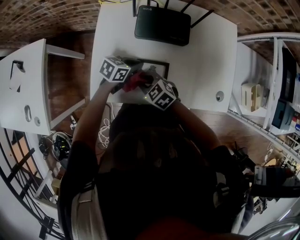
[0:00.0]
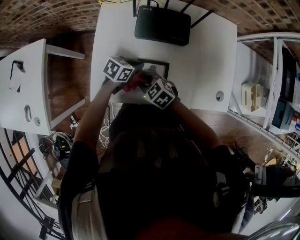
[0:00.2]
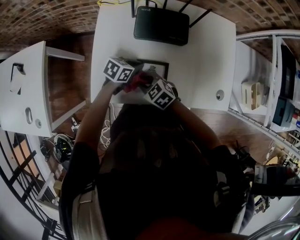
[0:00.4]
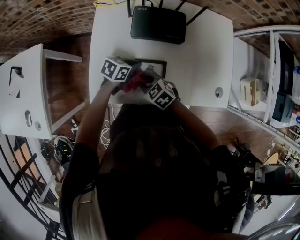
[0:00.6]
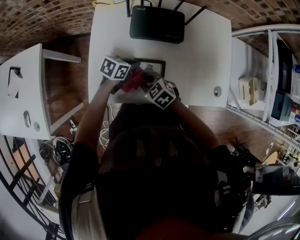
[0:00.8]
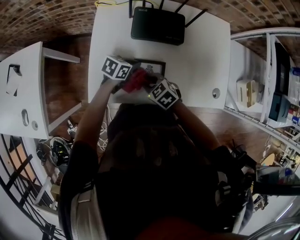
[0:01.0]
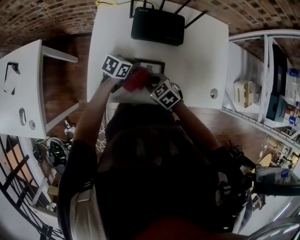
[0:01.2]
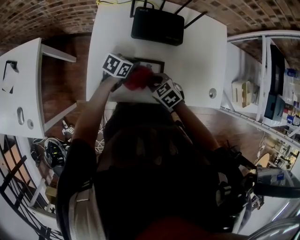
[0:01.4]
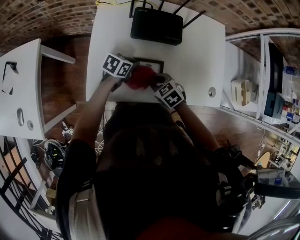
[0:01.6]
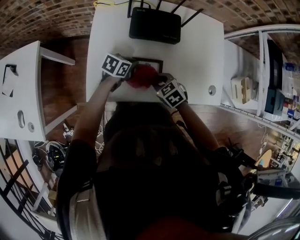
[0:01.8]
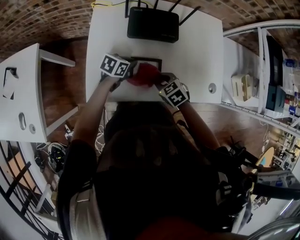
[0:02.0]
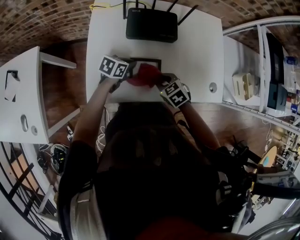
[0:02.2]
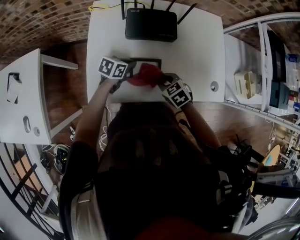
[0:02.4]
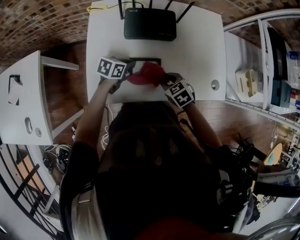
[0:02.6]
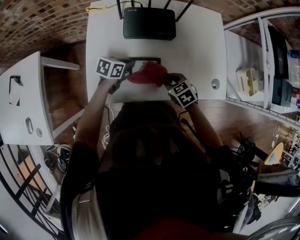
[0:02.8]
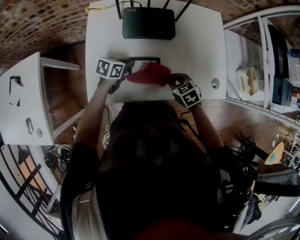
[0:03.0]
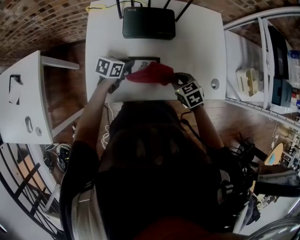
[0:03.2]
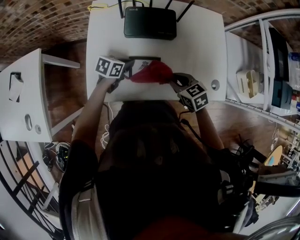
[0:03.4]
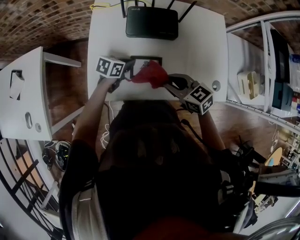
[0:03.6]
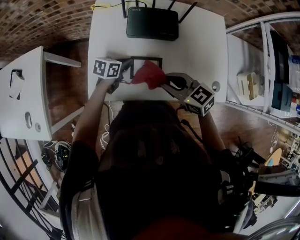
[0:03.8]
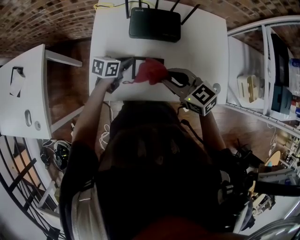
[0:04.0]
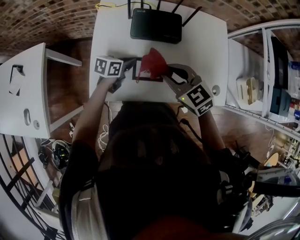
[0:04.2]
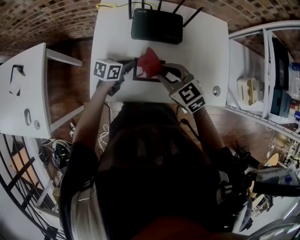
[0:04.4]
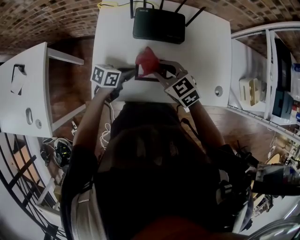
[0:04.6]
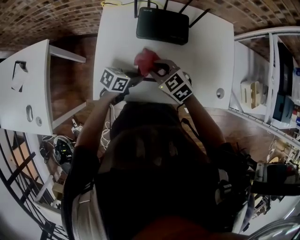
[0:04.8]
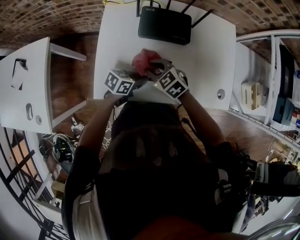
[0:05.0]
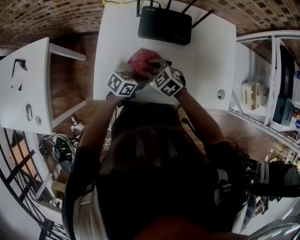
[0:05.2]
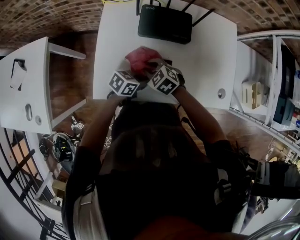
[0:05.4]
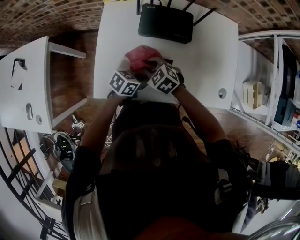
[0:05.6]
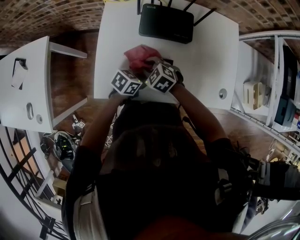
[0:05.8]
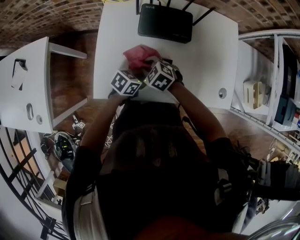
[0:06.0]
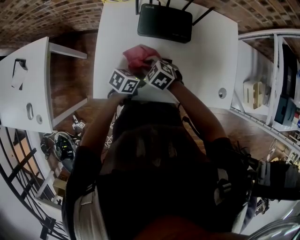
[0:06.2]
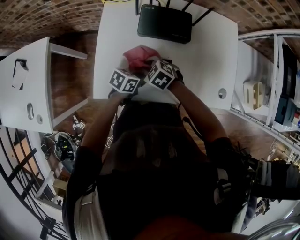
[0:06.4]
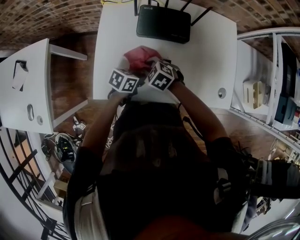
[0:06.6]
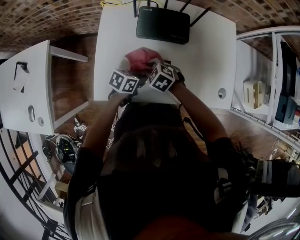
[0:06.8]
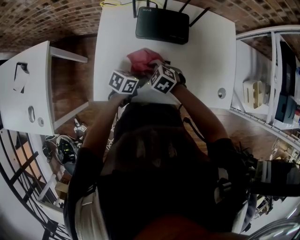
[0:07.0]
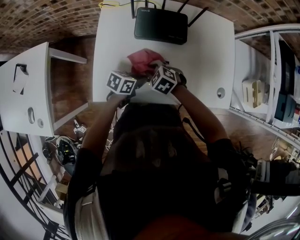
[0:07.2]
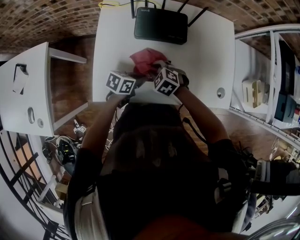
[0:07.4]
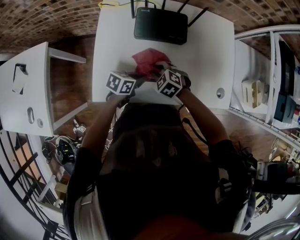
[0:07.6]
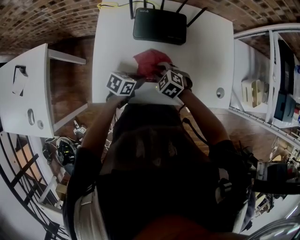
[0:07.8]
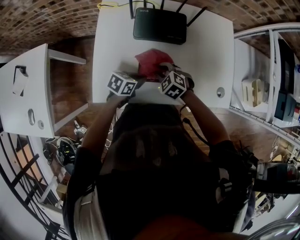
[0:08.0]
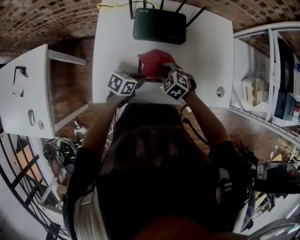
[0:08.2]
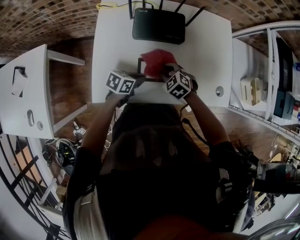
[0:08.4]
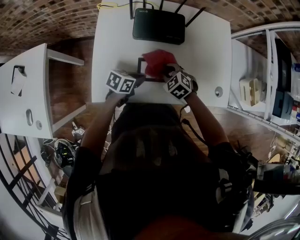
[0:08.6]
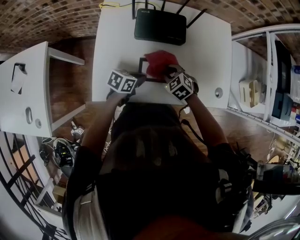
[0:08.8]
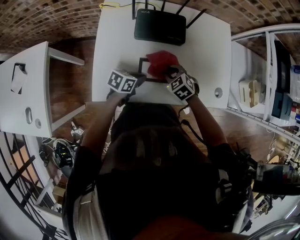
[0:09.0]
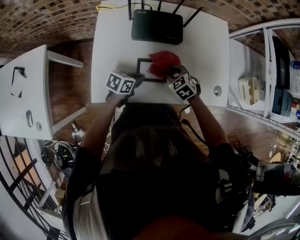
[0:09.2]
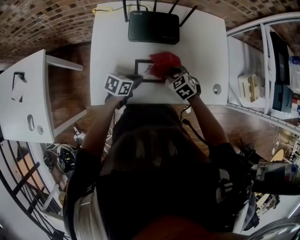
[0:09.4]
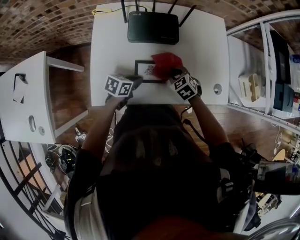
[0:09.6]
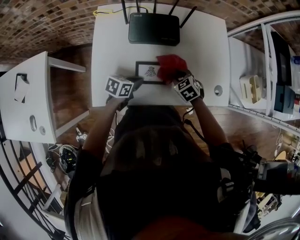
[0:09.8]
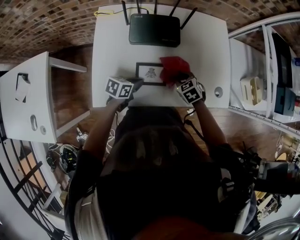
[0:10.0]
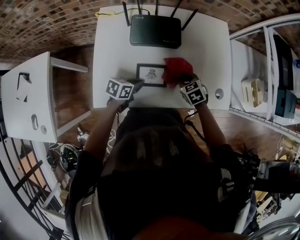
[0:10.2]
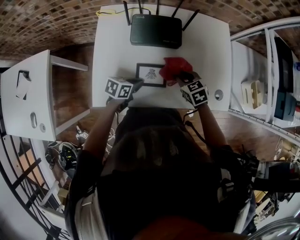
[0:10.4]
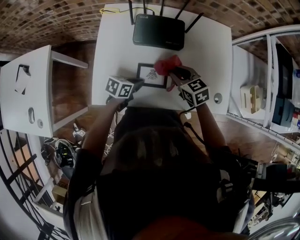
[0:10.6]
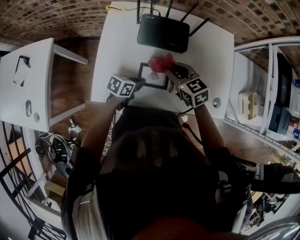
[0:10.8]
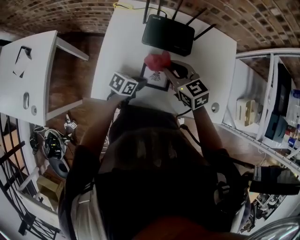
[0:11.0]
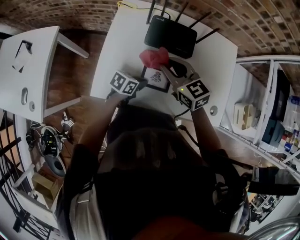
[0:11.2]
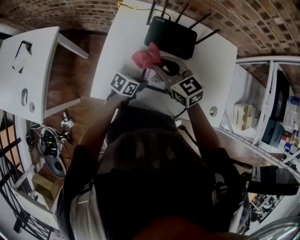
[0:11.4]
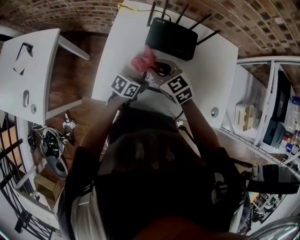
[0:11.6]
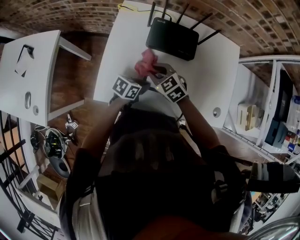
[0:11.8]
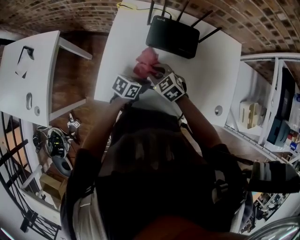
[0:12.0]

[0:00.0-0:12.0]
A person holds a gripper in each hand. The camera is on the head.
0:00.0 to 0:01.6: The right gripper moves some 10 cm.
0:01.6 to 0:03.0: The right gripper travels to the right by roughly 10 cm.
0:03.0 to 0:04.4: The right gripper moves upward, about 15 cm, and changes its angle by some 30 degrees.
0:04.4 to 0:06.0: The right gripper is displaced downward by some 15 cm, and changes its angle by some 30 degrees, while the left gripper moves about 10 cm.
0:06.0 to 0:07.6: The right gripper ends up approximately 5 cm from where it was.
0:07.6 to 0:09.0: The right gripper shifts about 5 cm to the right.
0:09.0 to 0:10.4: The right gripper moves to the right, about 5 cm, and rotates approximately 20 degrees.
0:10.4 to 0:12.0: The right gripper moves some 15 cm upward and comes back, and turns by roughly 30 degrees.

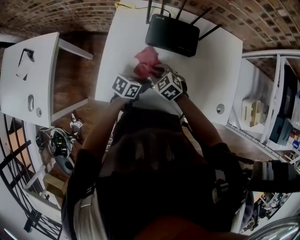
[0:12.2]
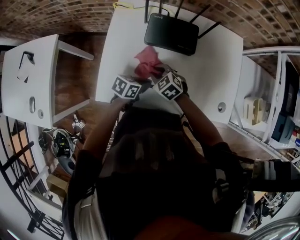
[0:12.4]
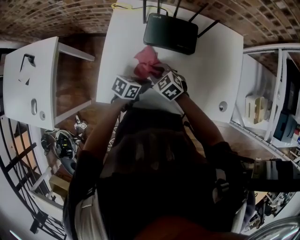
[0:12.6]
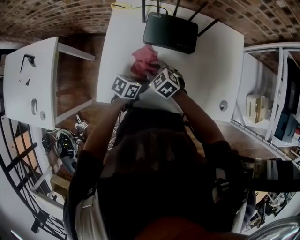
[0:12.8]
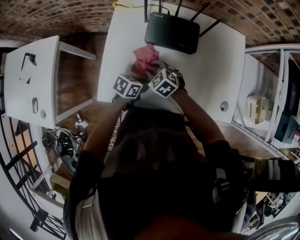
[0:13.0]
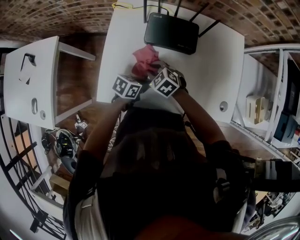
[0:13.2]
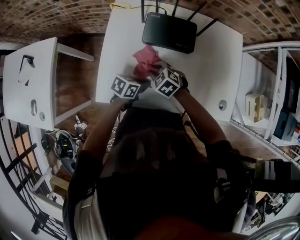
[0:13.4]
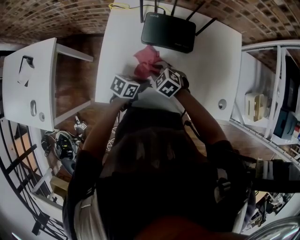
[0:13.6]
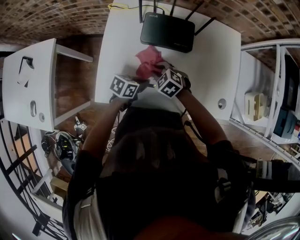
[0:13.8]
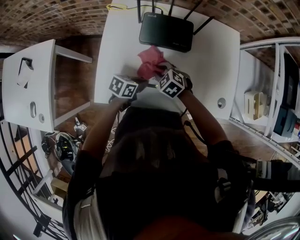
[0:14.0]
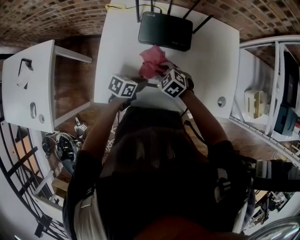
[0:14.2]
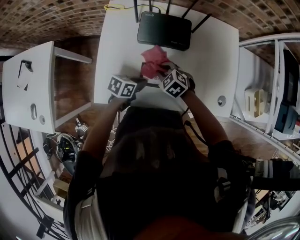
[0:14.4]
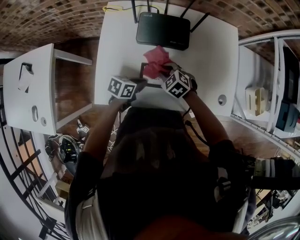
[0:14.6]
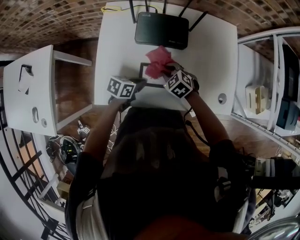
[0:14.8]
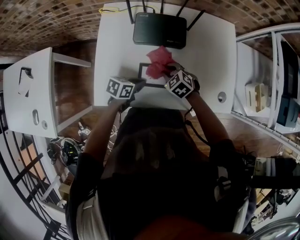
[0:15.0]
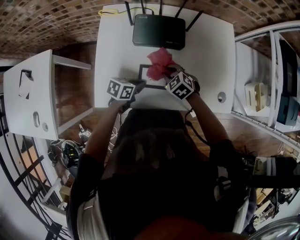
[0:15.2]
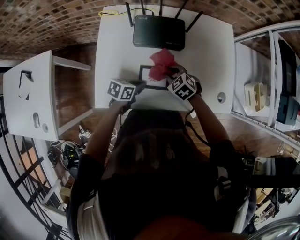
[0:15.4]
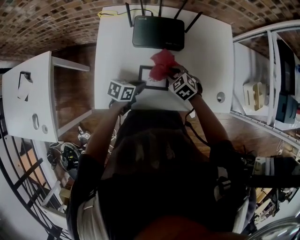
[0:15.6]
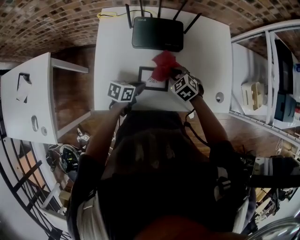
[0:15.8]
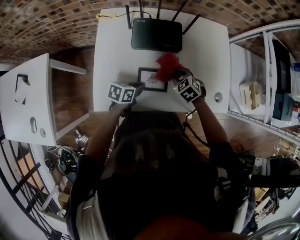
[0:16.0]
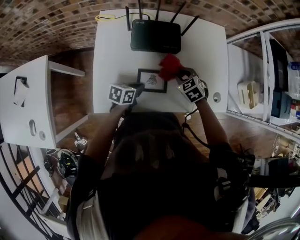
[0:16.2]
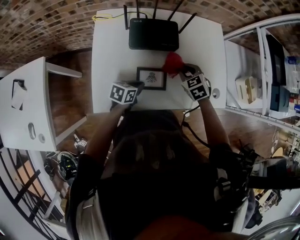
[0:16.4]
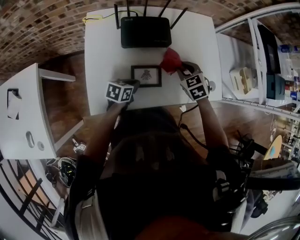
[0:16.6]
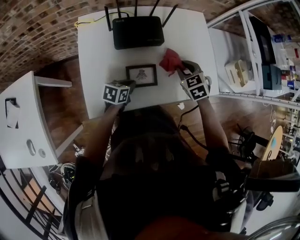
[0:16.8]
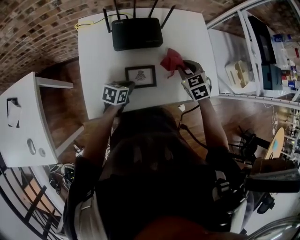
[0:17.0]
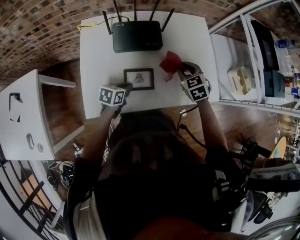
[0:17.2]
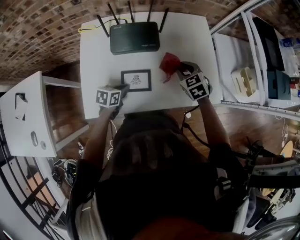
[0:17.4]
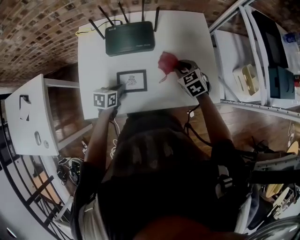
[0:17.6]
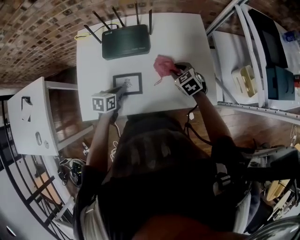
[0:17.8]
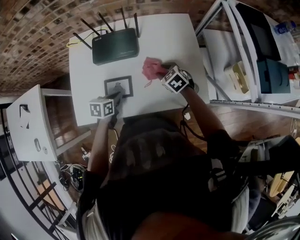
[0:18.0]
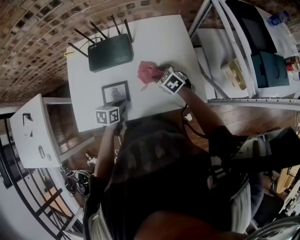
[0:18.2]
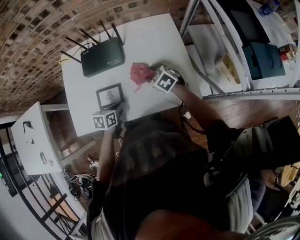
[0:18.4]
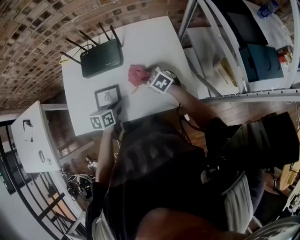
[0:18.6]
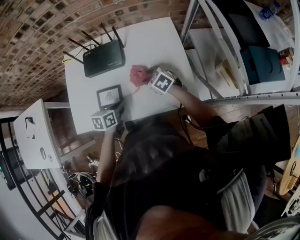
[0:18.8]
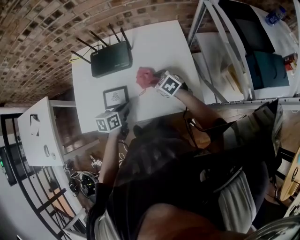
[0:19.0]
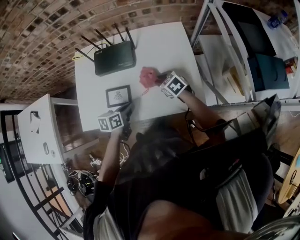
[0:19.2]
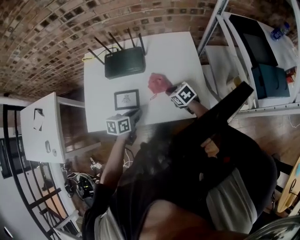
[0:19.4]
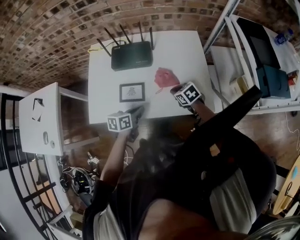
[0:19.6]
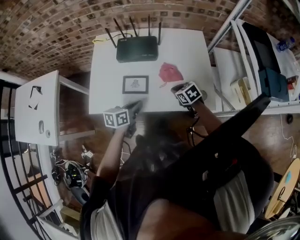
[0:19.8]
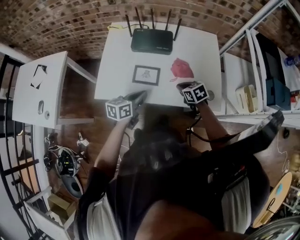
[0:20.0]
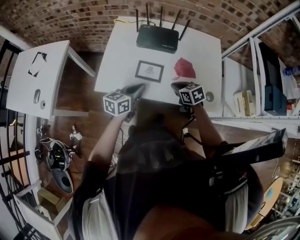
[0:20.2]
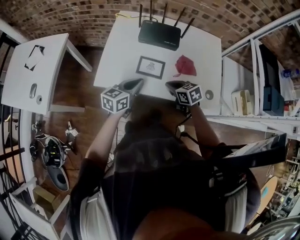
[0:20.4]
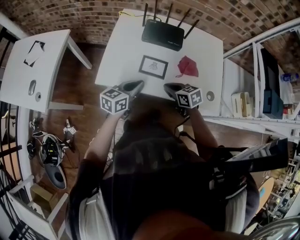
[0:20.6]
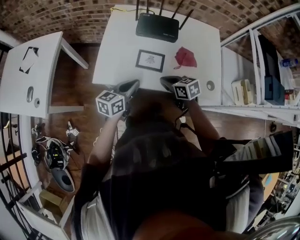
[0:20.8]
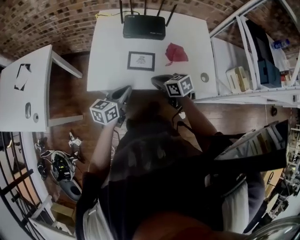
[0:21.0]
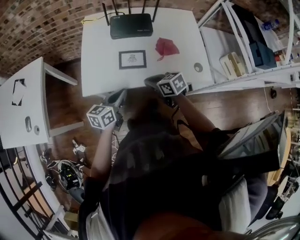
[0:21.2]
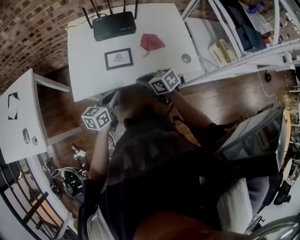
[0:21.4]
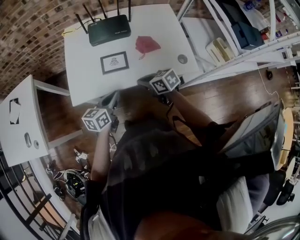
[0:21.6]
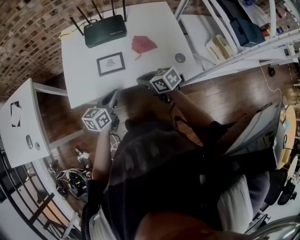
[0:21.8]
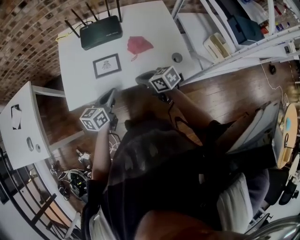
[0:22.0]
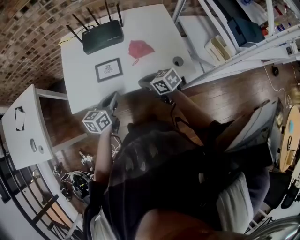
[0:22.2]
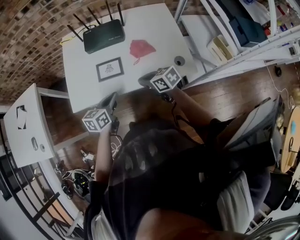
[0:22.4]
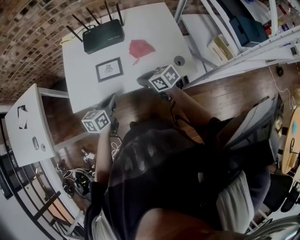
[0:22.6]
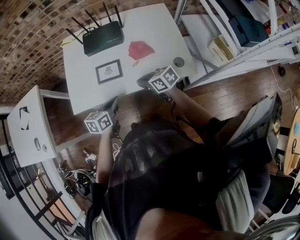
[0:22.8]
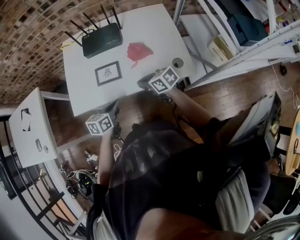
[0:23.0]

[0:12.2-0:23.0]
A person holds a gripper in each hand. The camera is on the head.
0:12.2 to 0:13.8: The grippers move only a little.
0:13.8 to 0:15.2: The right gripper ends up approximately 10 cm from where it was.
0:15.2 to 0:16.8: The right gripper heads to the right and upward, covering approximately 15 cm, and turns by about 30 degrees.
0:16.8 to 0:18.4: The left gripper ends up about 10 cm from where it was; the right gripper ends up approximately 10 cm from where it was, swivels approximately 20 degrees, and opens its fingers.
0:18.4 to 0:20.0: The right gripper moves backward and to the left, approximately 10 cm, and closes up. Meanwhile the left gripper goes about 15 cm upward, backward and to the left, and rotates about 30 degrees.
0:20.0 to 0:21.4: The right gripper is displaced to the left and backward by about 15 cm. The left gripper shifts some 10 cm to the left and backward.
0:21.4 to 0:23.0: Both grippers move to the right, some 10 cm.

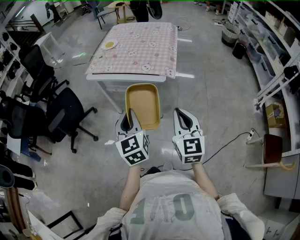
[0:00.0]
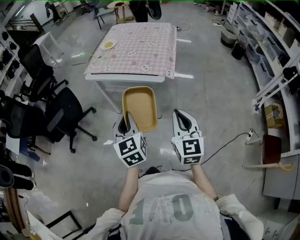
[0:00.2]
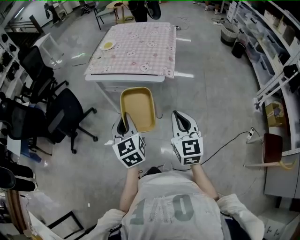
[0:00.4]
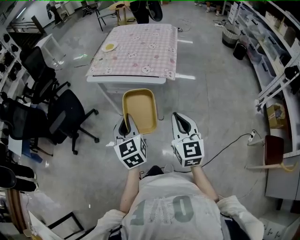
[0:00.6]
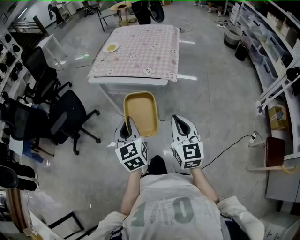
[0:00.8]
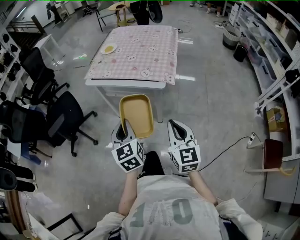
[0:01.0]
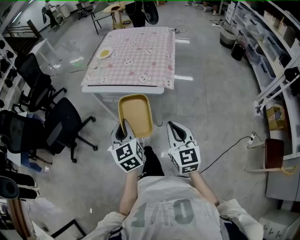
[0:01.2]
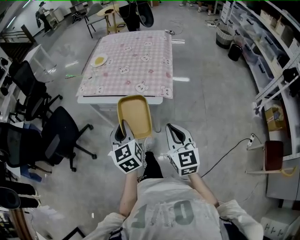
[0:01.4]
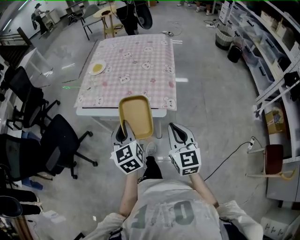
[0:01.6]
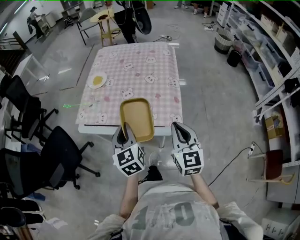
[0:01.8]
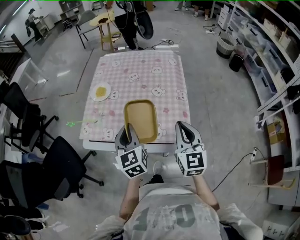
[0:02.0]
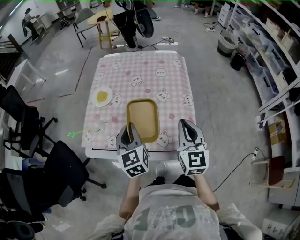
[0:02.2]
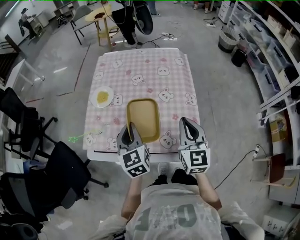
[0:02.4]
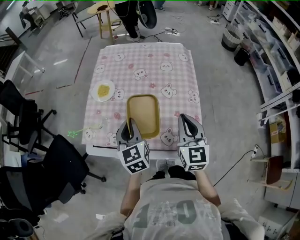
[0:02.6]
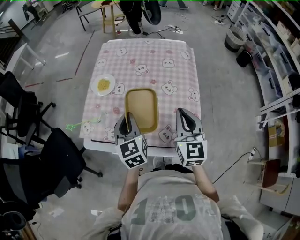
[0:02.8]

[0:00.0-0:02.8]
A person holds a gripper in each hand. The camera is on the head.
0:00.0 to 0:01.4: Both grippers travel together forward, roughly 10 cm.
0:01.4 to 0:02.8: Both grippers move forward, roughly 40 cm.
